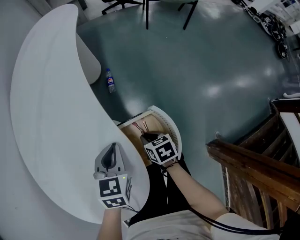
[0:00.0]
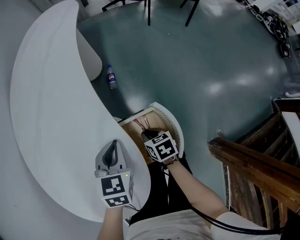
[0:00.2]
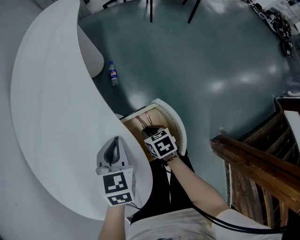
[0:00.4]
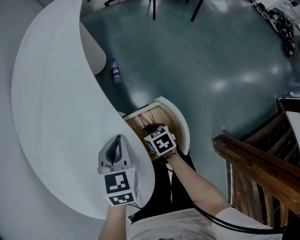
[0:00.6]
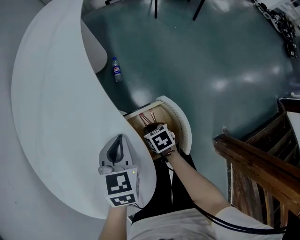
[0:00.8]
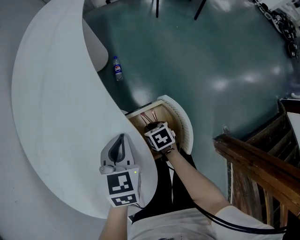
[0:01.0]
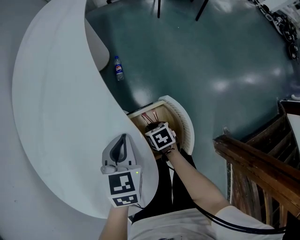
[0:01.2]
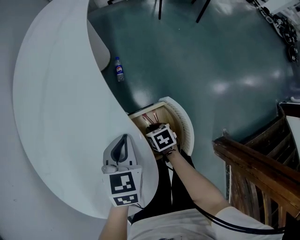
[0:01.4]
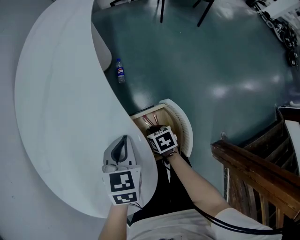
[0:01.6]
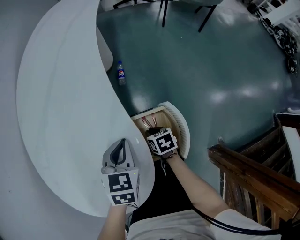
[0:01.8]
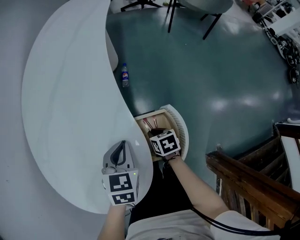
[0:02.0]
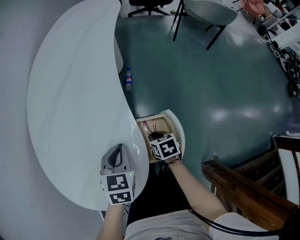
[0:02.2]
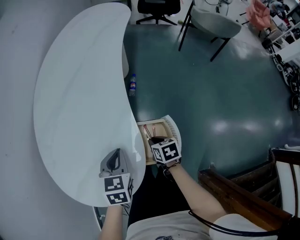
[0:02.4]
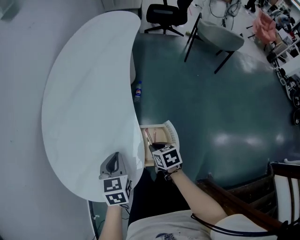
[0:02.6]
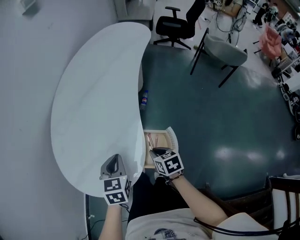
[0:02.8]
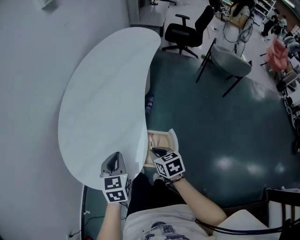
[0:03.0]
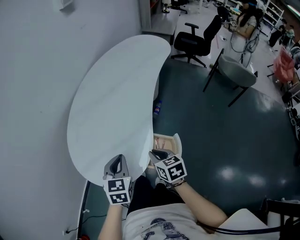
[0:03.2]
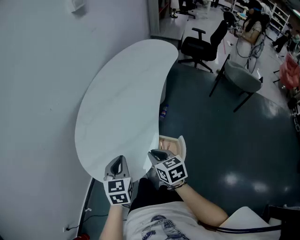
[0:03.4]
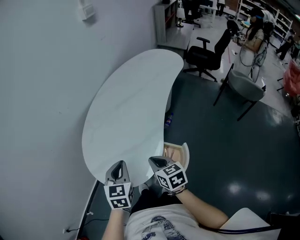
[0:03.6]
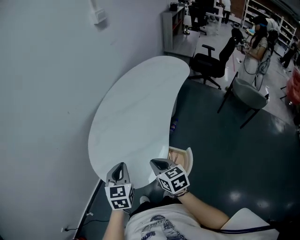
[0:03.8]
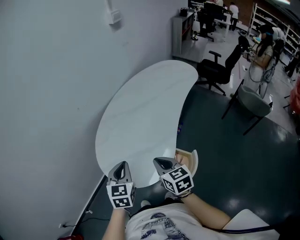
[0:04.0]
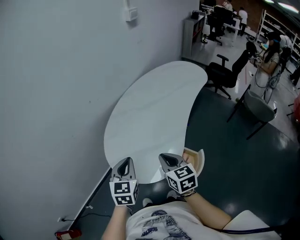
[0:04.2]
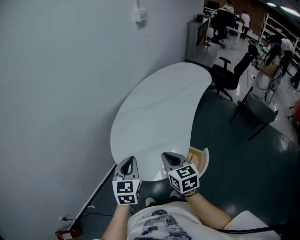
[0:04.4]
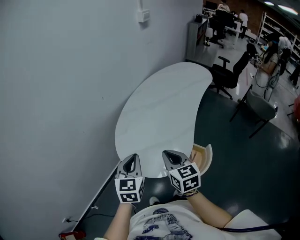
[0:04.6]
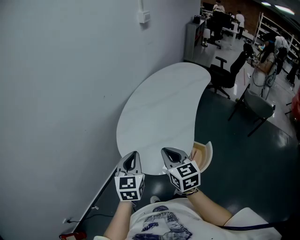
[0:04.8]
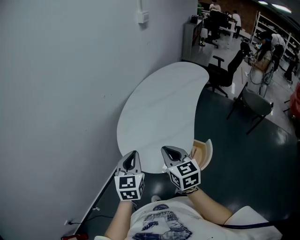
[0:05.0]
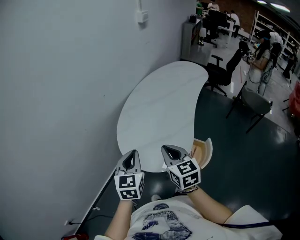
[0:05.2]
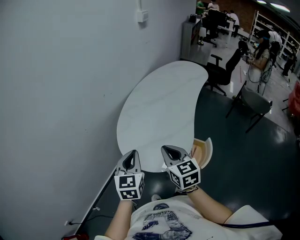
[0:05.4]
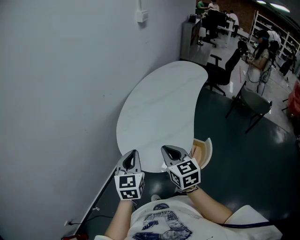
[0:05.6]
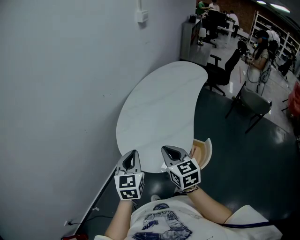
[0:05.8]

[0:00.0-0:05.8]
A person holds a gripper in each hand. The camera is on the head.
0:00.0 to 0:01.4: The right gripper shifts approximately 5 cm downward.
0:01.4 to 0:02.8: The left gripper is displaced to the left, upward and backward by some 15 cm, and changes its angle by about 30 degrees. The right gripper is displaced upward by about 20 cm, and turns by approximately 20 degrees.
0:02.8 to 0:04.4: The left gripper goes some 25 cm to the left and upward, and rotates some 30 degrees; the right gripper goes roughly 35 cm upward and to the left, and rotates roughly 40 degrees.
0:04.4 to 0:05.8: Both grippers travel together to the left, approximately 5 cm.

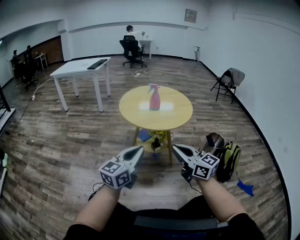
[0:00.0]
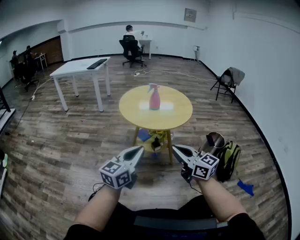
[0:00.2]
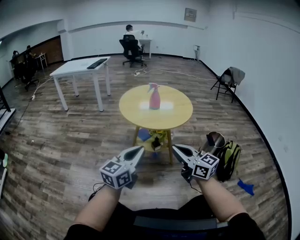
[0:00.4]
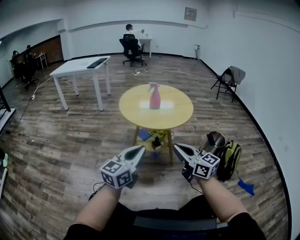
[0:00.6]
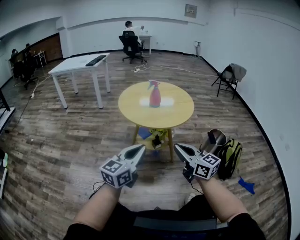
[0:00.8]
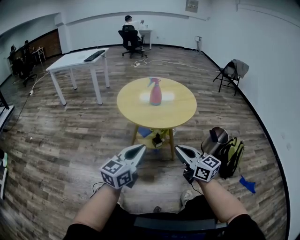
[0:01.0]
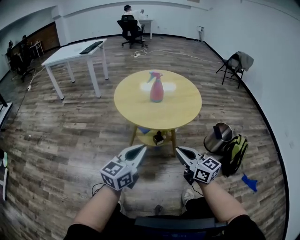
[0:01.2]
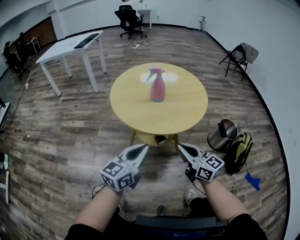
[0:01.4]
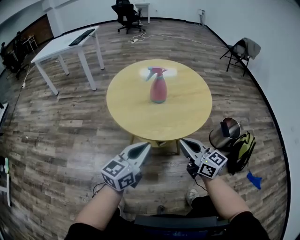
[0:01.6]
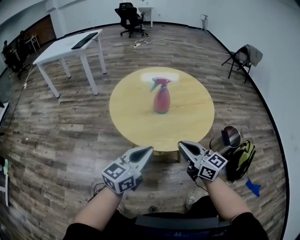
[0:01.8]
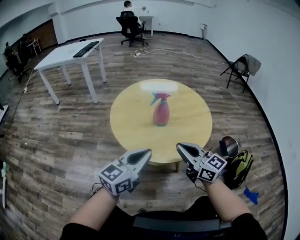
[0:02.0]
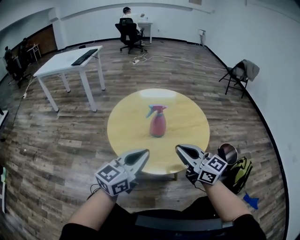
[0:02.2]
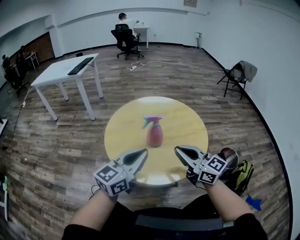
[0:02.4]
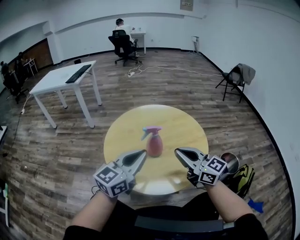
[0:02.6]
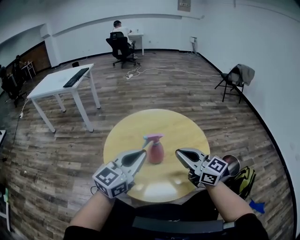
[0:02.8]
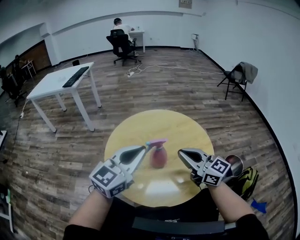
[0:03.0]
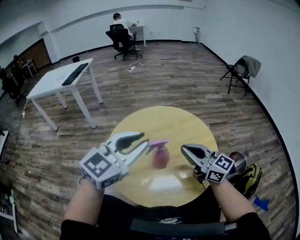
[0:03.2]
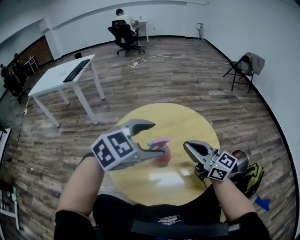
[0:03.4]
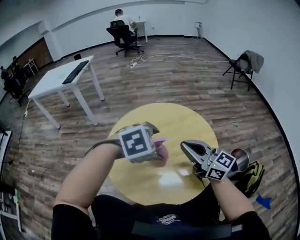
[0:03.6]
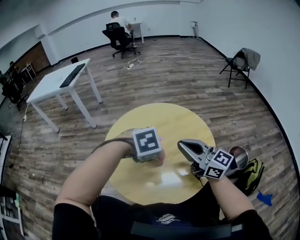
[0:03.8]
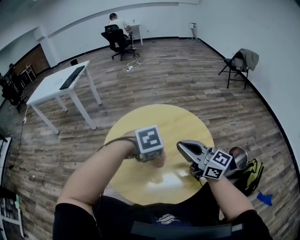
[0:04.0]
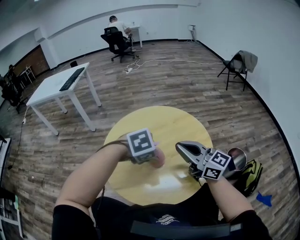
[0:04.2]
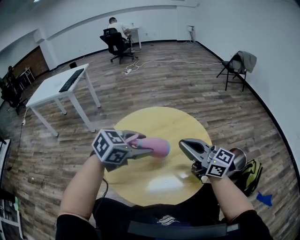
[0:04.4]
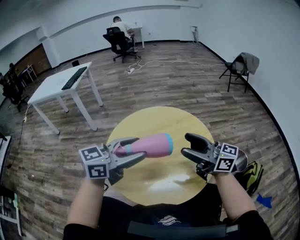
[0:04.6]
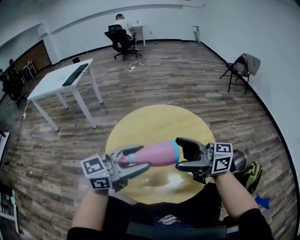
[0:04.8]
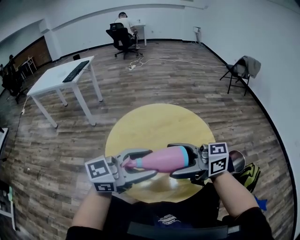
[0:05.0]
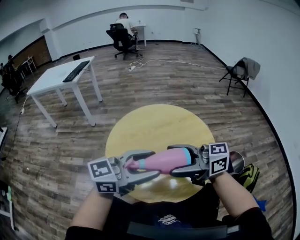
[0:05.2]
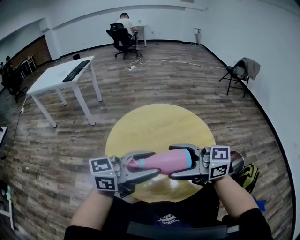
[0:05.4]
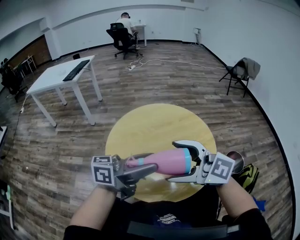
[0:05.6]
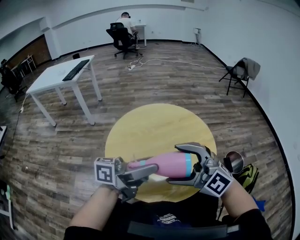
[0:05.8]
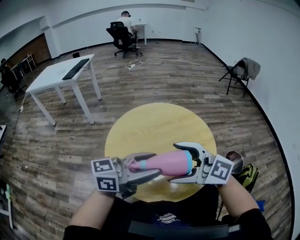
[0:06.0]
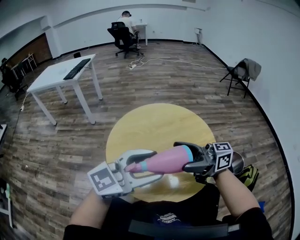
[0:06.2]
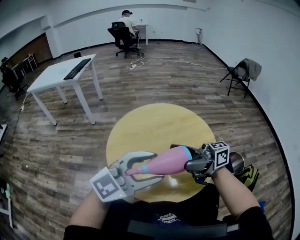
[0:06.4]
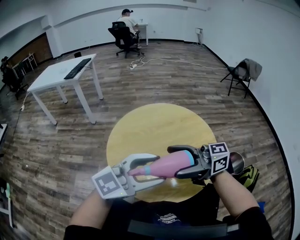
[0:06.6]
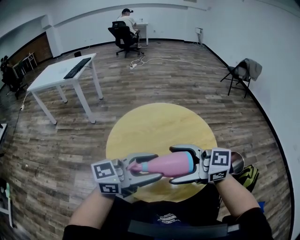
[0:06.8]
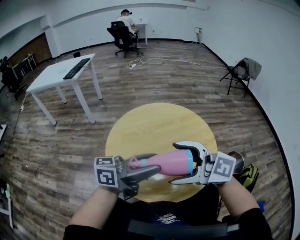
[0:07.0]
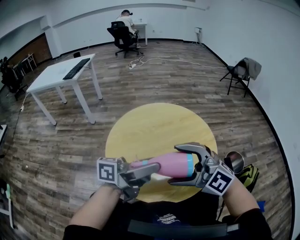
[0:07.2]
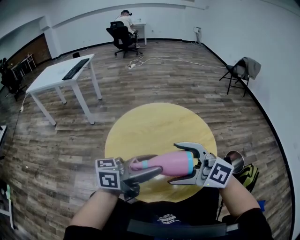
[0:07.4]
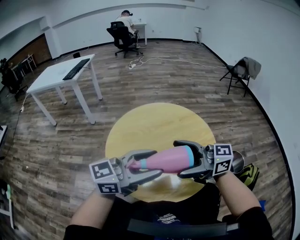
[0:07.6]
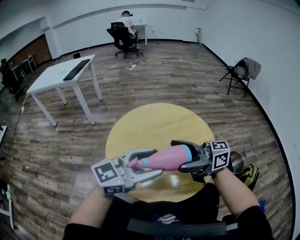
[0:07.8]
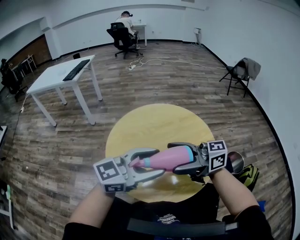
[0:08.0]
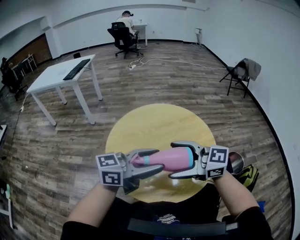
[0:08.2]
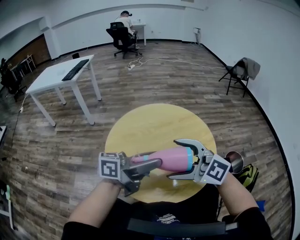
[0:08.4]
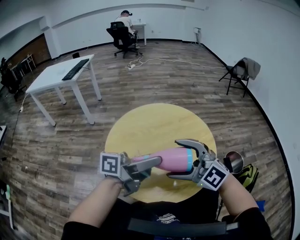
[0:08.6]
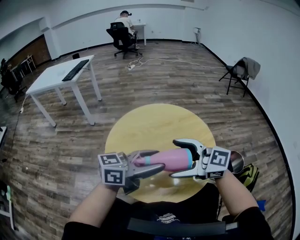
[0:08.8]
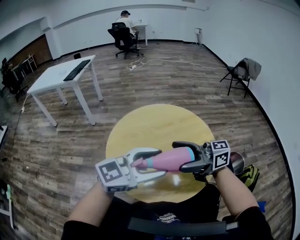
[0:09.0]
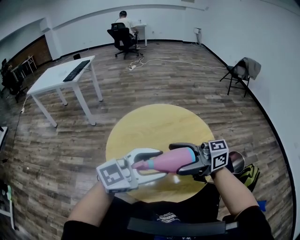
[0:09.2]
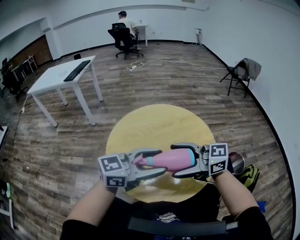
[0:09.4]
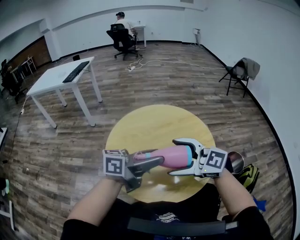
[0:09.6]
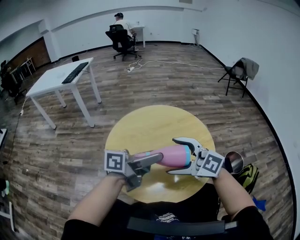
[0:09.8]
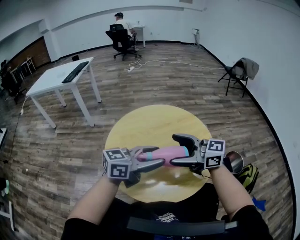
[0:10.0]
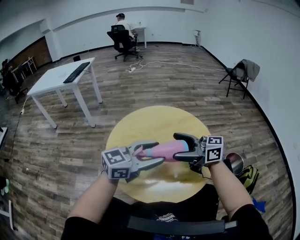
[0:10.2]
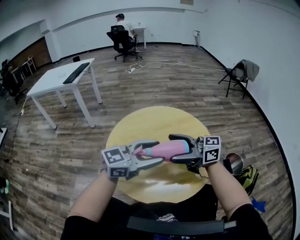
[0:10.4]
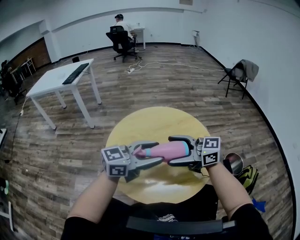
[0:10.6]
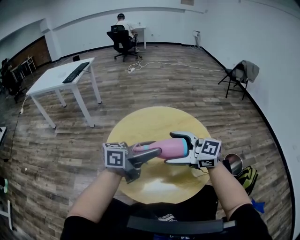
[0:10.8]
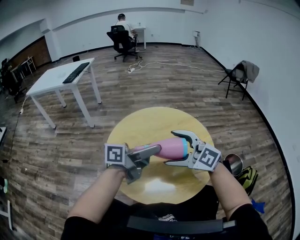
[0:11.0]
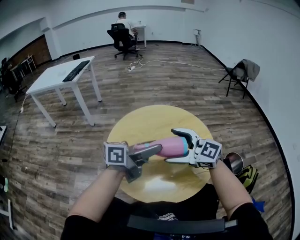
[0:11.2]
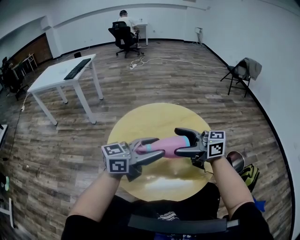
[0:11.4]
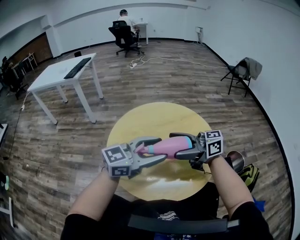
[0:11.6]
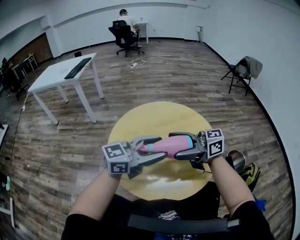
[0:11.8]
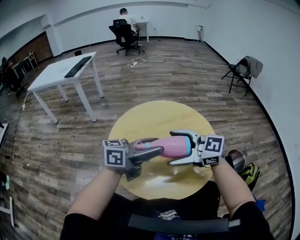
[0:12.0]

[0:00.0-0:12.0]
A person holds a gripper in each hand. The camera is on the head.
0:00.0 to 0:01.6: The right gripper shifts about 35 cm forward and downward. Meanwhile the left gripper heads forward, covering about 30 cm.
0:01.6 to 0:03.0: Both grippers move forward and upward, some 30 cm. The left gripper turns by some 20 degrees.
0:03.0 to 0:04.4: The left gripper moves roughly 15 cm downward and comes back, tips its fingers downward by about 30 degrees, and opens up. The right gripper shifts by about 5 cm.
0:04.4 to 0:06.0: The left gripper ends up about 10 cm from where it was, and angles its fingers upward, by about 40 degrees, while the right gripper shifts by some 15 cm, rotates some 40 degrees, and opens up.
0:06.0 to 0:07.6: The right gripper rotates approximately 40 degrees.
0:09.0 to 0:10.4: The left gripper ends up about 5 cm from where it was.
0:10.4 to 0:12.0: The left gripper rotates approximately 30 degrees, while the right gripper swivels roughly 20 degrees.

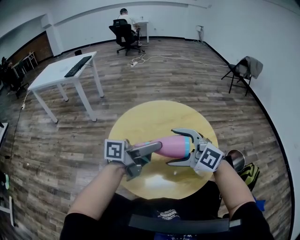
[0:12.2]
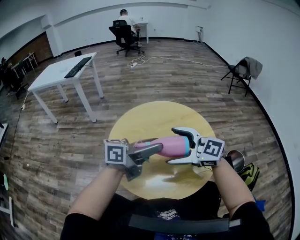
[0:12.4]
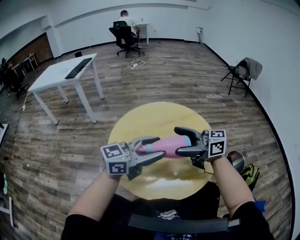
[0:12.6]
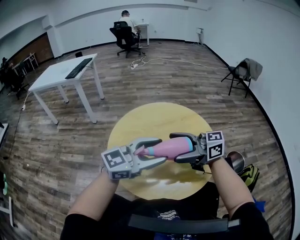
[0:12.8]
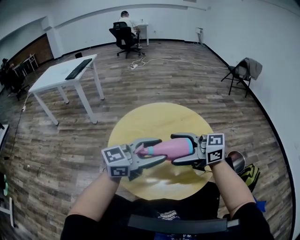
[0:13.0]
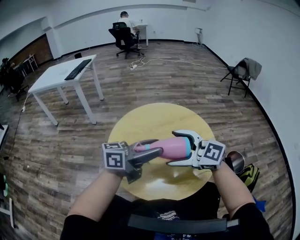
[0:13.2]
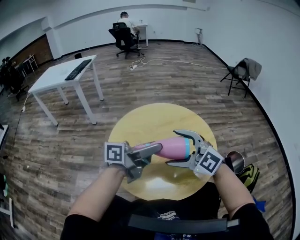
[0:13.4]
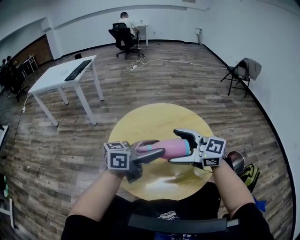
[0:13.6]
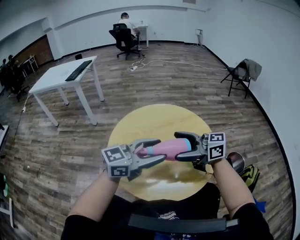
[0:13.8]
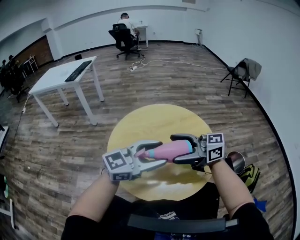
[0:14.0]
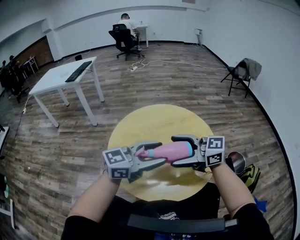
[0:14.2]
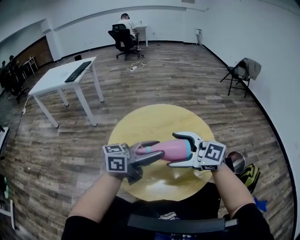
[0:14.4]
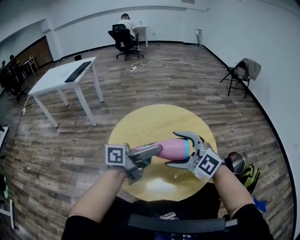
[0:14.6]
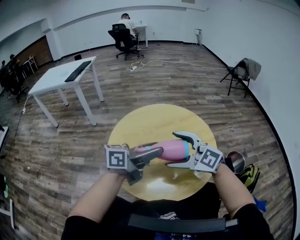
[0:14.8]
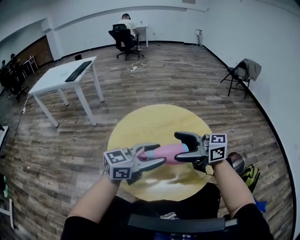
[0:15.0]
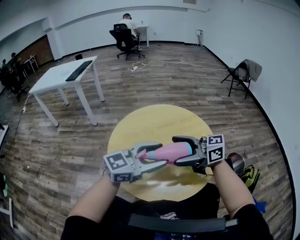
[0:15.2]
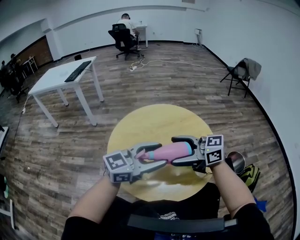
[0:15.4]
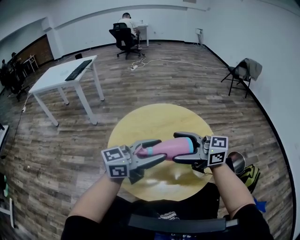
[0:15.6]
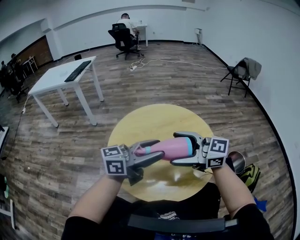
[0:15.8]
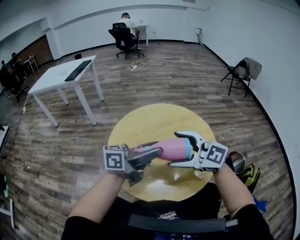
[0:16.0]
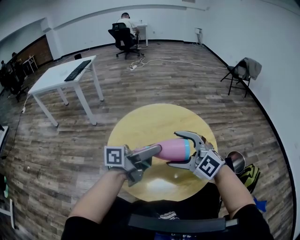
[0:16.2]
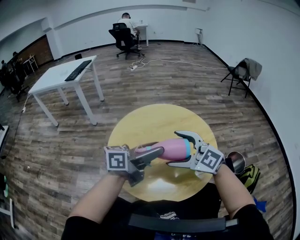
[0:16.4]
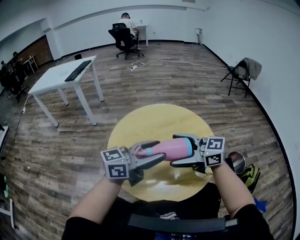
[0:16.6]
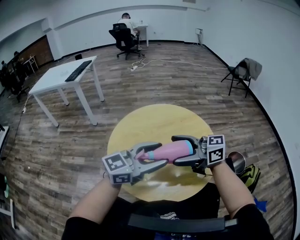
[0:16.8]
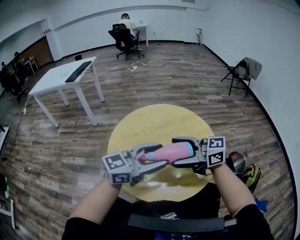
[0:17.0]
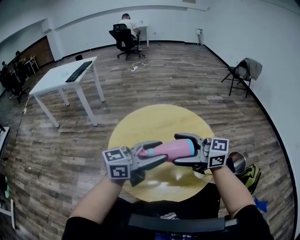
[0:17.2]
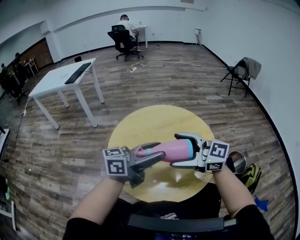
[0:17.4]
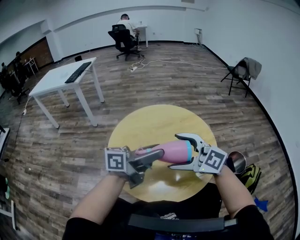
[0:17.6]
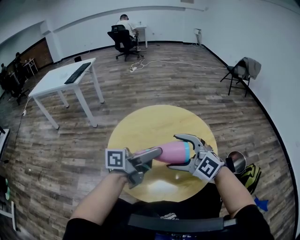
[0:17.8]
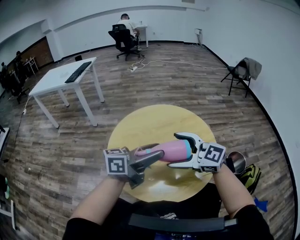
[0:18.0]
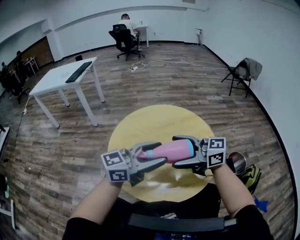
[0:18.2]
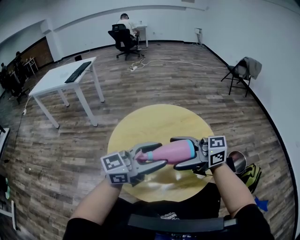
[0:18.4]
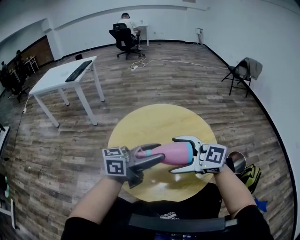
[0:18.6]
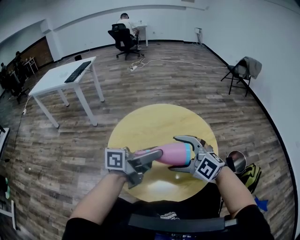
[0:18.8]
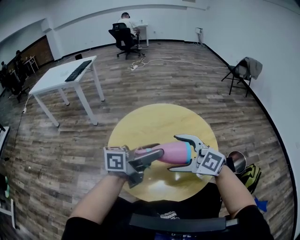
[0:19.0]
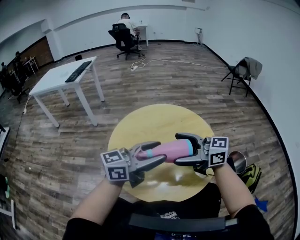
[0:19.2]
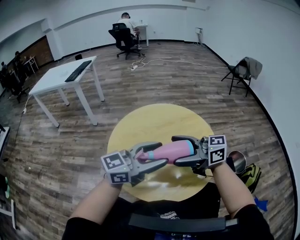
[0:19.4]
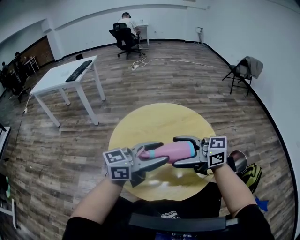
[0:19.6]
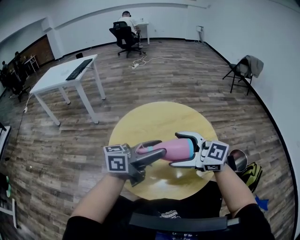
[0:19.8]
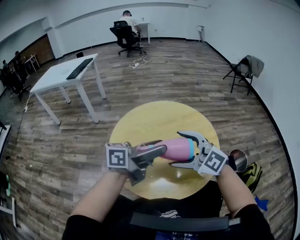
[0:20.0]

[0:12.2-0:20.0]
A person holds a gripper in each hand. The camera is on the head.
0:12.2 to 0:13.8: The left gripper moves approximately 5 cm, and twists roughly 40 degrees clockwise, seen from behind. The right gripper rotates around the line of its fingers by roughly 50 degrees, clockwise from behind.
0:18.4 to 0:20.0: The left gripper changes its angle by some 30 degrees, while the right gripper twists some 40 degrees counterclockwise, seen from behind.
